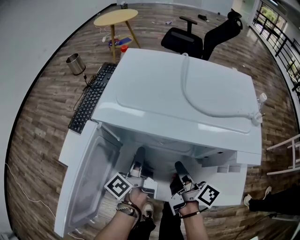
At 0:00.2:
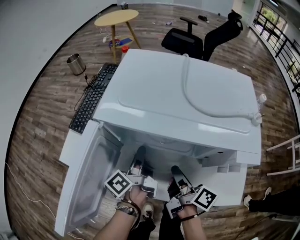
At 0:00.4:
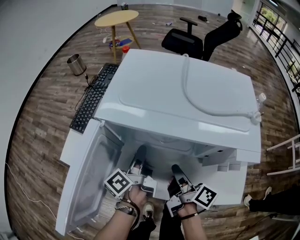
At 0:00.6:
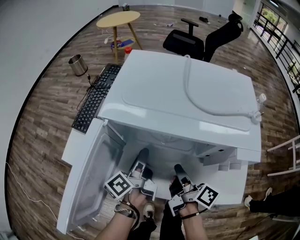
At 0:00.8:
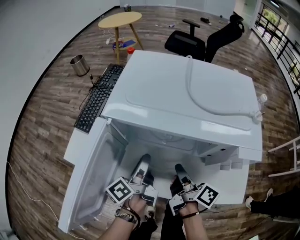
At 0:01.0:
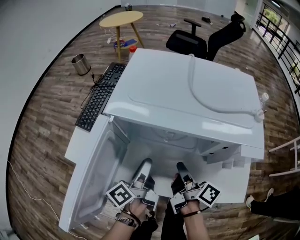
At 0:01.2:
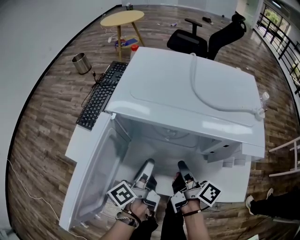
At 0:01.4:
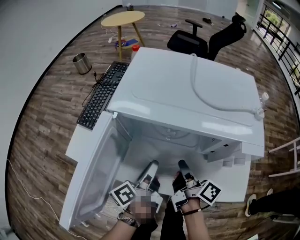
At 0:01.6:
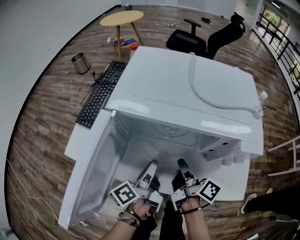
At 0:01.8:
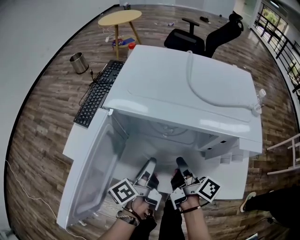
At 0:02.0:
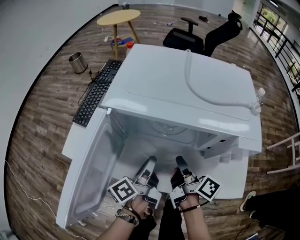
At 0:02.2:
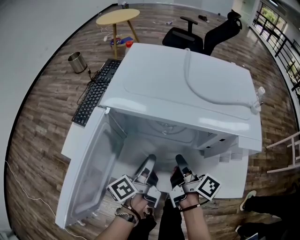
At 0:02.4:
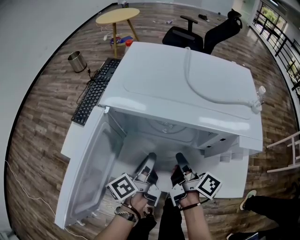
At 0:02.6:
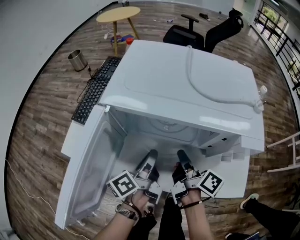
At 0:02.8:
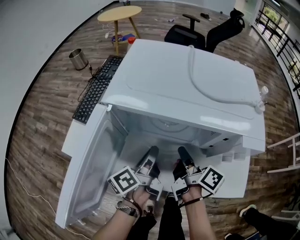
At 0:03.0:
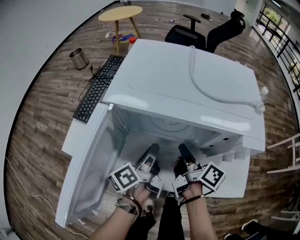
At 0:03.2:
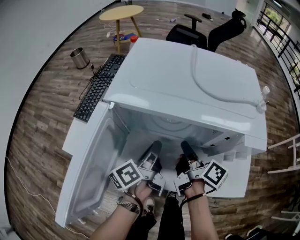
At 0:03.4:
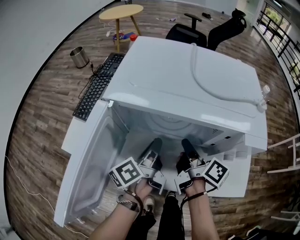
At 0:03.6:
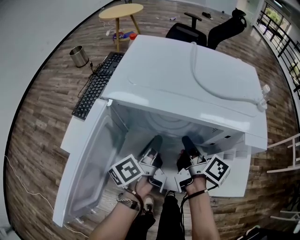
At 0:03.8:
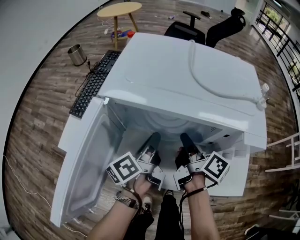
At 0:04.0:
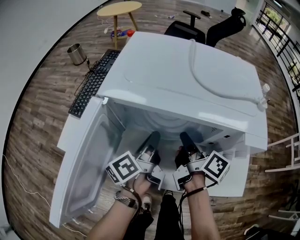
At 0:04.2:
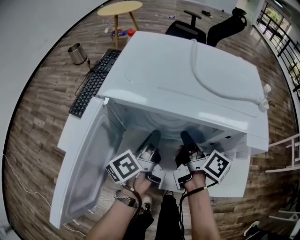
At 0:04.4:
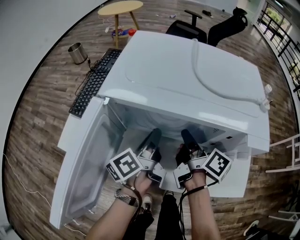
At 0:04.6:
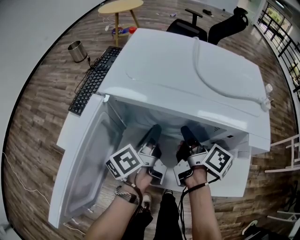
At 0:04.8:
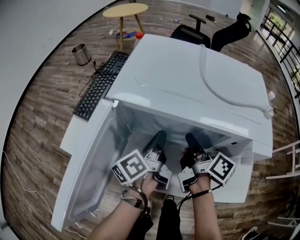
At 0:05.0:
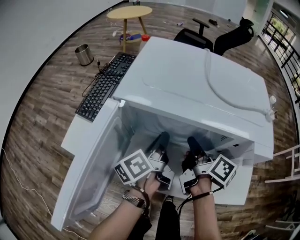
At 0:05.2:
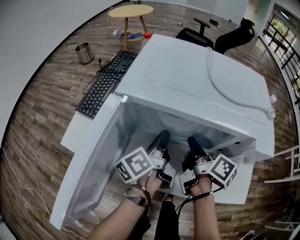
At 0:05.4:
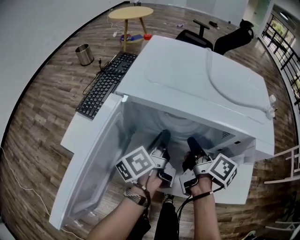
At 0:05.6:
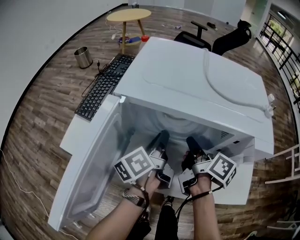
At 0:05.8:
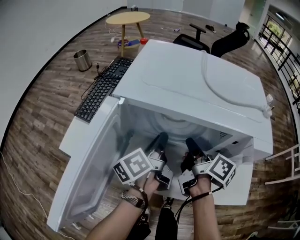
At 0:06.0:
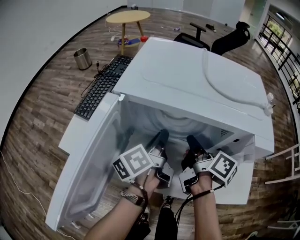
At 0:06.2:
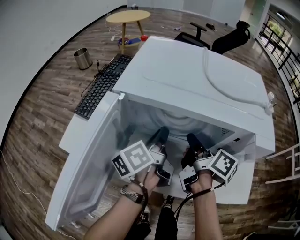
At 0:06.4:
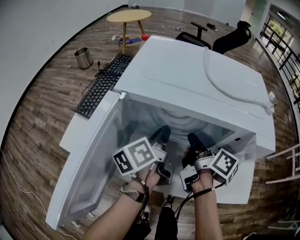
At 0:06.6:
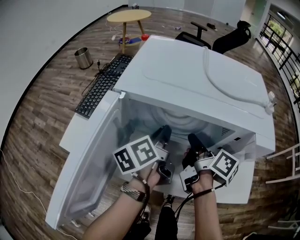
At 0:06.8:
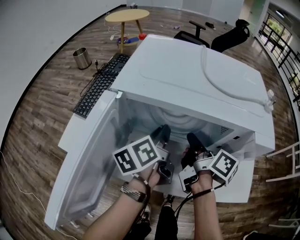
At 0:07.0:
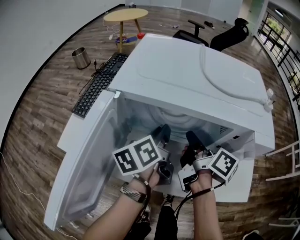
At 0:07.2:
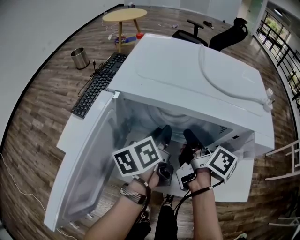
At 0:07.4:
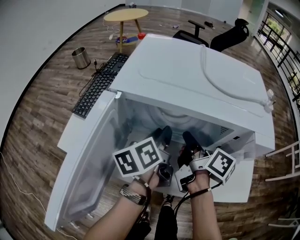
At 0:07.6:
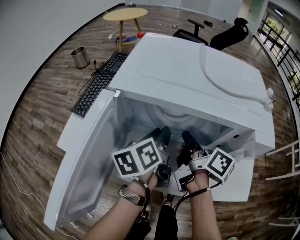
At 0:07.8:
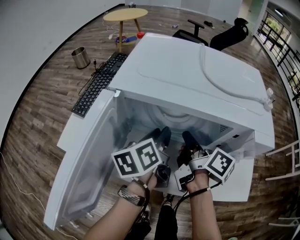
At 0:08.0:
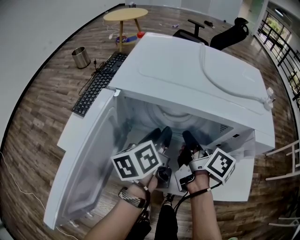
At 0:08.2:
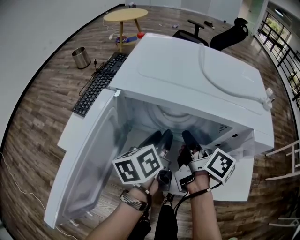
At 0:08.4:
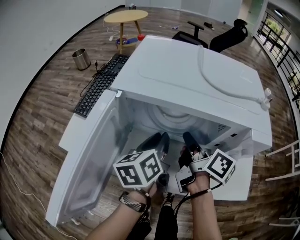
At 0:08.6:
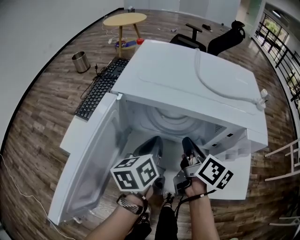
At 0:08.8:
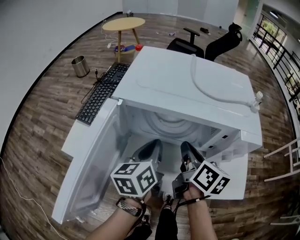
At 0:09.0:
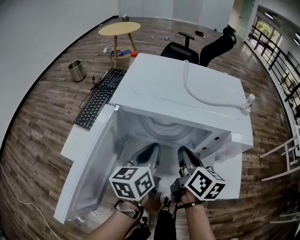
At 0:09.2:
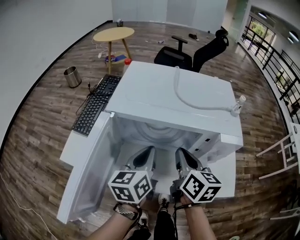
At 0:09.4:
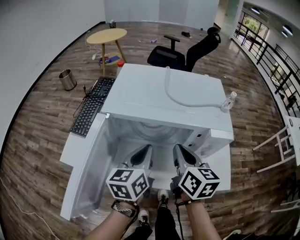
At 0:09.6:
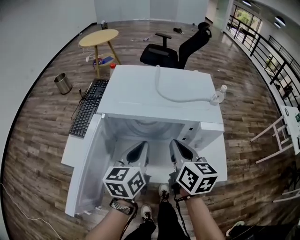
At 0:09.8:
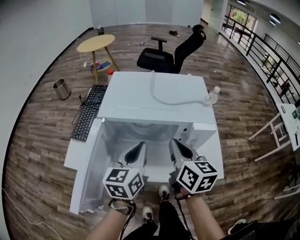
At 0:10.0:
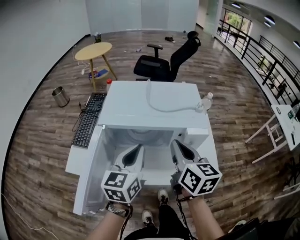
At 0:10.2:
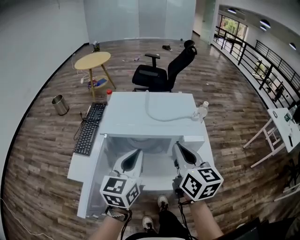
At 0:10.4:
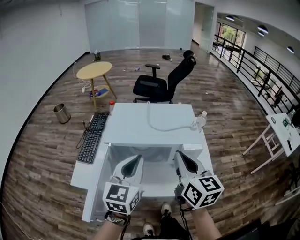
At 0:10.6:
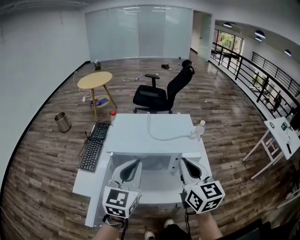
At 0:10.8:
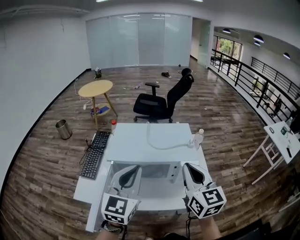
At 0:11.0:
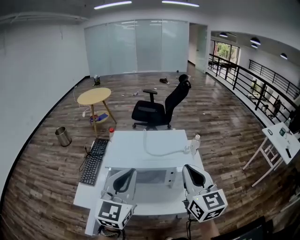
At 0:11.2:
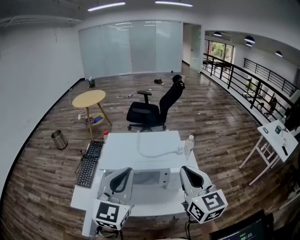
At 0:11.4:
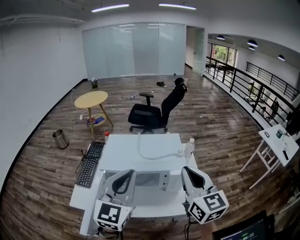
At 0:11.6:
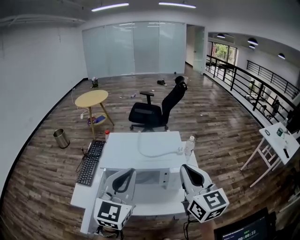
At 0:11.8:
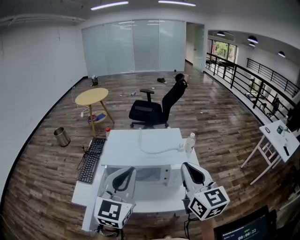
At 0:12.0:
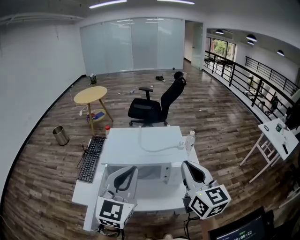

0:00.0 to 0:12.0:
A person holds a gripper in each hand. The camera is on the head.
0:00.0 to 0:01.6: The left gripper travels backward by roughly 5 cm.
0:01.6 to 0:03.0: There are only small adjustments of the grippers.
0:03.0 to 0:06.0: The grippers make only small movements.
0:06.0 to 0:07.6: The left gripper rotates roughly 20 degrees.
0:07.6 to 0:09.0: The left gripper ends up approximately 5 cm from where it was, and closes its fingers; the right gripper changes place by some 5 cm, and turns by approximately 30 degrees.
0:09.0 to 0:10.4: Both grippers move upward, approximately 20 cm. The right gripper turns by about 30 degrees; the left gripper rotates roughly 40 degrees.
0:10.4 to 0:12.0: The left gripper goes some 10 cm upward, while the right gripper heads upward and to the right, covering approximately 10 cm.

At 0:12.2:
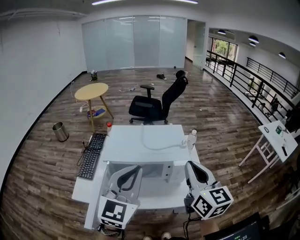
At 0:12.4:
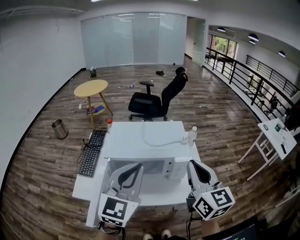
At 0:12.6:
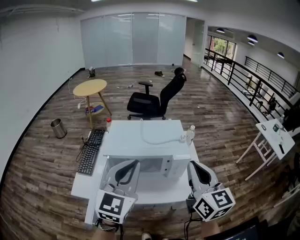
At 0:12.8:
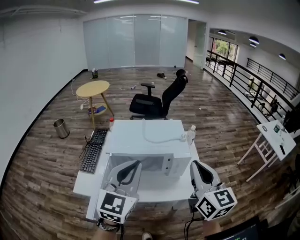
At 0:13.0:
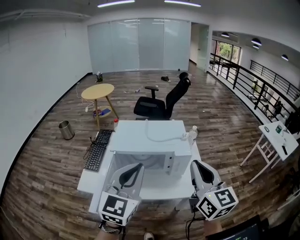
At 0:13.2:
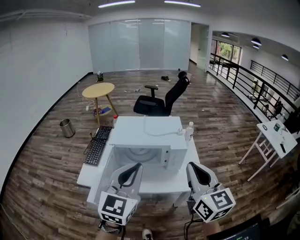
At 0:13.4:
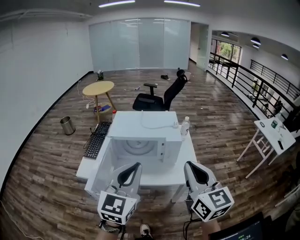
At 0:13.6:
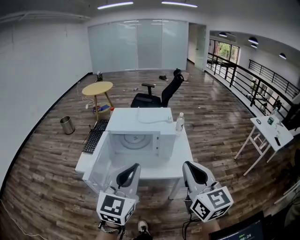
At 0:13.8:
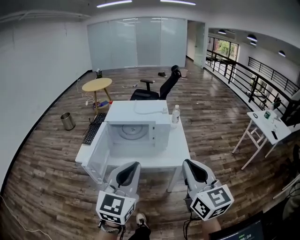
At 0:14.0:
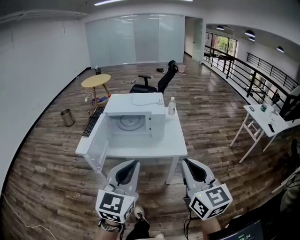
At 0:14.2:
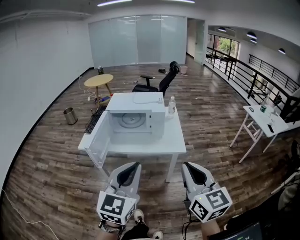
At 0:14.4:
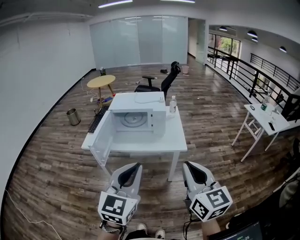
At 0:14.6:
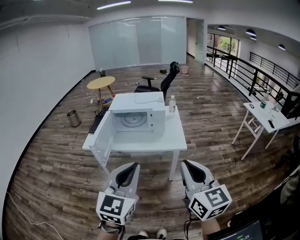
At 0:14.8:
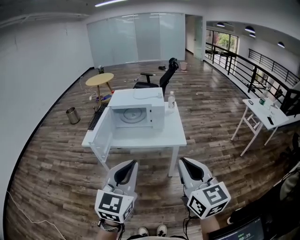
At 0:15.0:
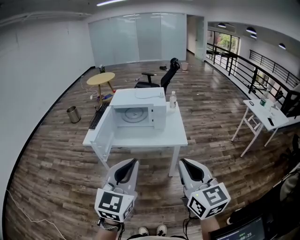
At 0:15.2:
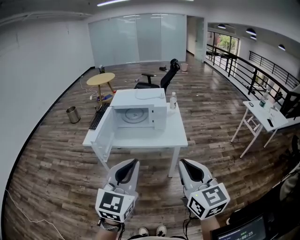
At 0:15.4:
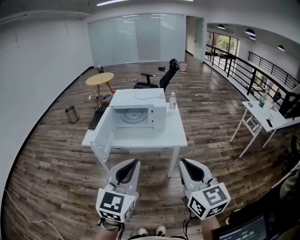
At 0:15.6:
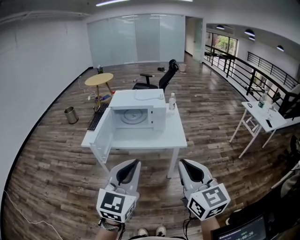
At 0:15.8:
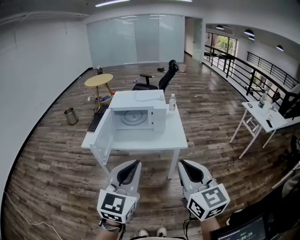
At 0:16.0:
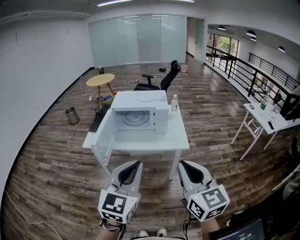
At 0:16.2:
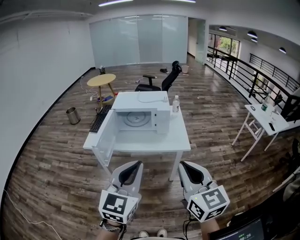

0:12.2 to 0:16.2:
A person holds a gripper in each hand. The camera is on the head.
0:12.2 to 0:13.6: Both grippers travel together backward, roughly 20 cm.
0:13.6 to 0:14.8: Both grippers move backward, about 20 cm.
0:14.8 to 0:16.2: The grippers make only small movements.

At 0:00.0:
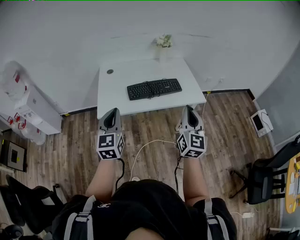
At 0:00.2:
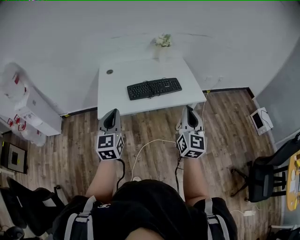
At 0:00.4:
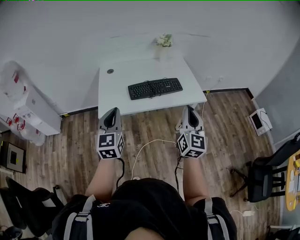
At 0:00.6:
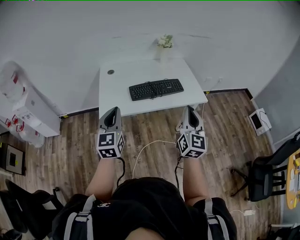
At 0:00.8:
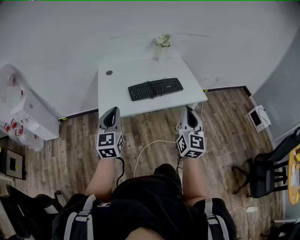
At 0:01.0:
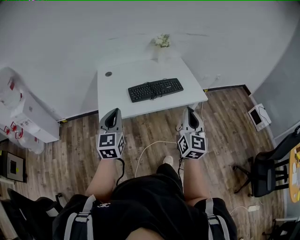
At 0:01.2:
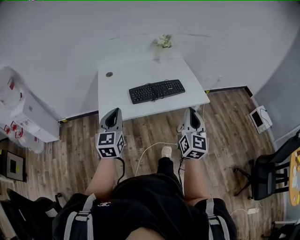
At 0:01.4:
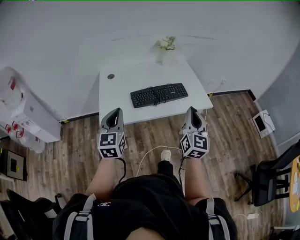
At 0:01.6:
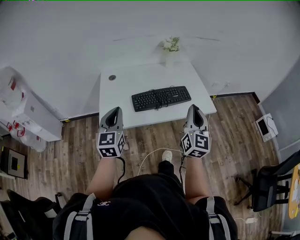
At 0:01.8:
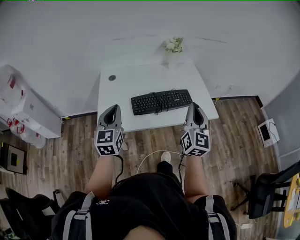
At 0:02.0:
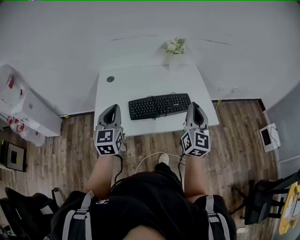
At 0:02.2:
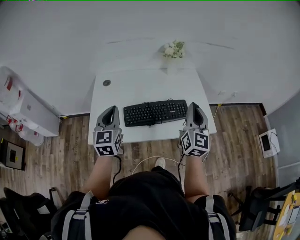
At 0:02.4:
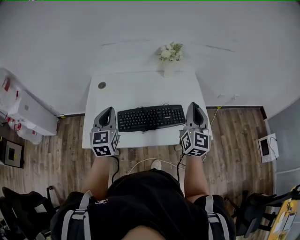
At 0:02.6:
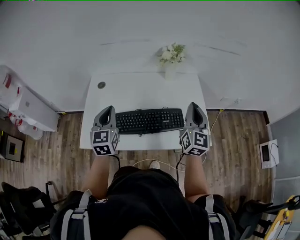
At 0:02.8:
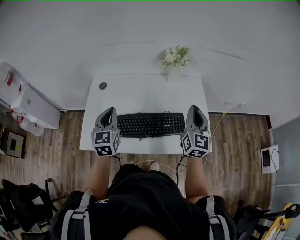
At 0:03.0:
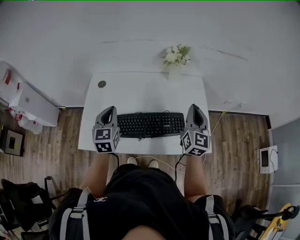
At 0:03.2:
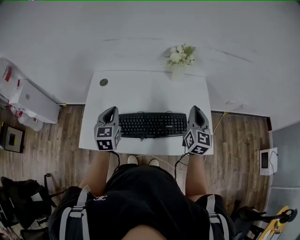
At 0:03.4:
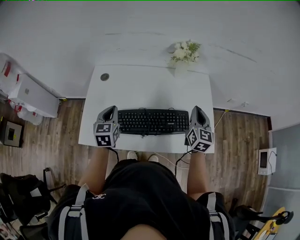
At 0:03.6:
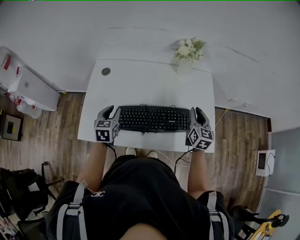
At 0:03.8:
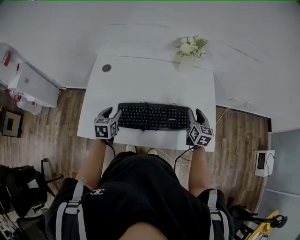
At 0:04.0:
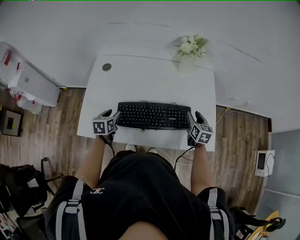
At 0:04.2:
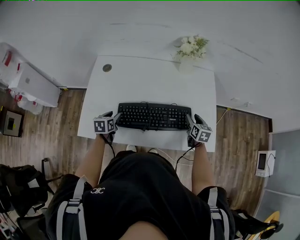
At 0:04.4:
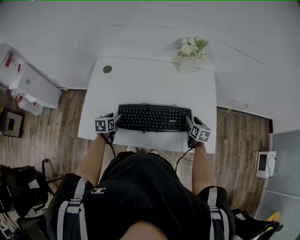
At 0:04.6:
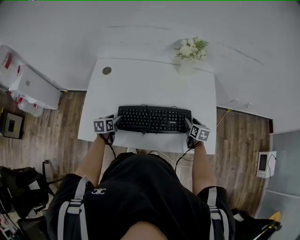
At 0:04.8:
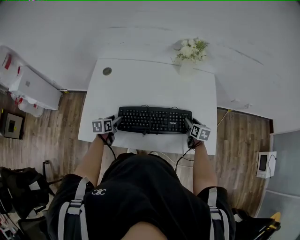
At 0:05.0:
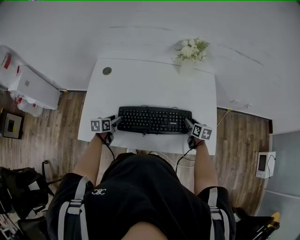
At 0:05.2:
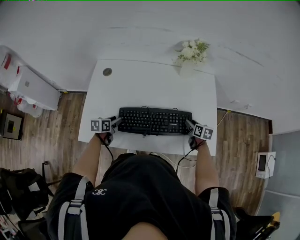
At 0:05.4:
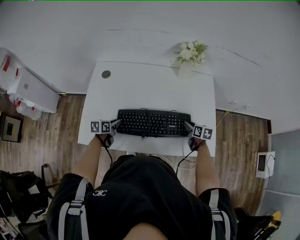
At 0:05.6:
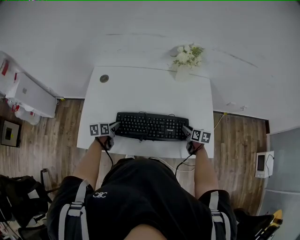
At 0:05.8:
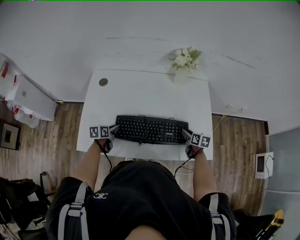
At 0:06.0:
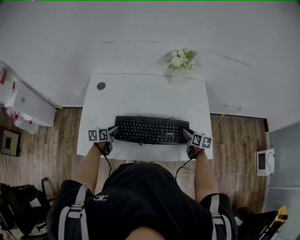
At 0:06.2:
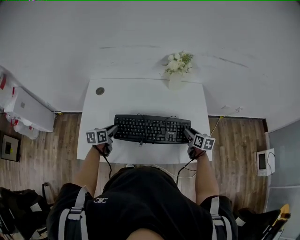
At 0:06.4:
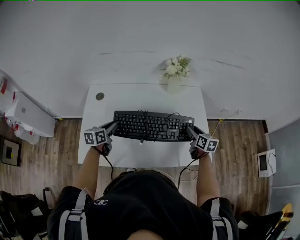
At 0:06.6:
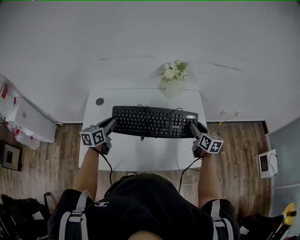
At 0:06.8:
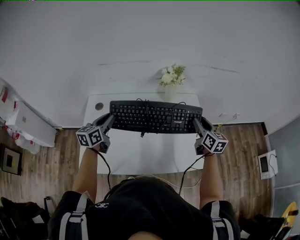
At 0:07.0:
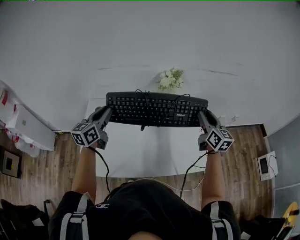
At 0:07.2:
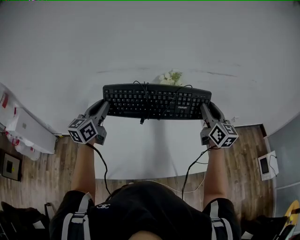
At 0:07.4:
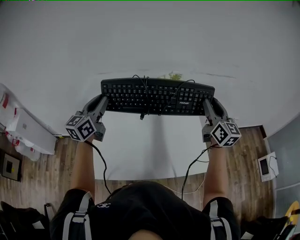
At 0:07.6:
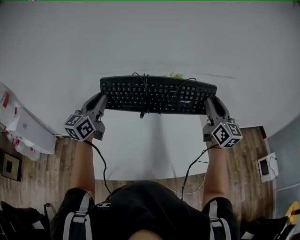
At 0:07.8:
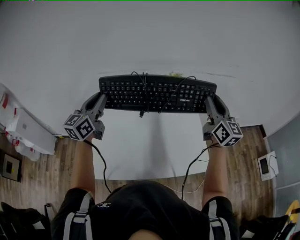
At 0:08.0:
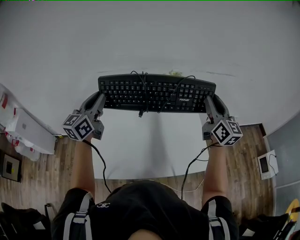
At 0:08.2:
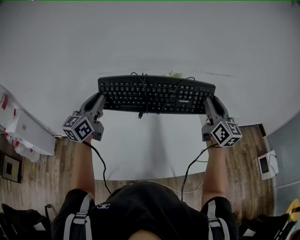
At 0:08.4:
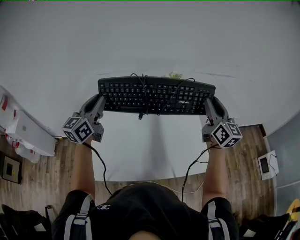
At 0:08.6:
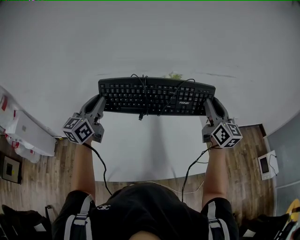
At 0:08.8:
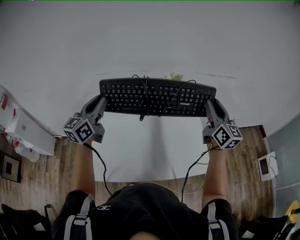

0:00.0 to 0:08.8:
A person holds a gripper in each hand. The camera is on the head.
0:00.0 to 0:01.4: The grippers both shift forward by roughly 10 cm.
0:01.4 to 0:03.0: The grippers both shift forward by some 35 cm.
0:03.0 to 0:04.4: Both grippers move downward, about 30 cm. The left gripper tilts its fingers about 30 degrees downward, and opens. Meanwhile the right gripper points its fingers about 40 degrees further downward, and opens up.
0:04.4 to 0:05.8: The left gripper closes its fingers.
0:05.8 to 0:07.4: The grippers both shift upward by some 40 cm. The left gripper tips its fingers upward by approximately 50 degrees, while the right gripper points its fingers about 50 degrees further upward.
0:07.4 to 0:08.8: The grippers move only a little.
